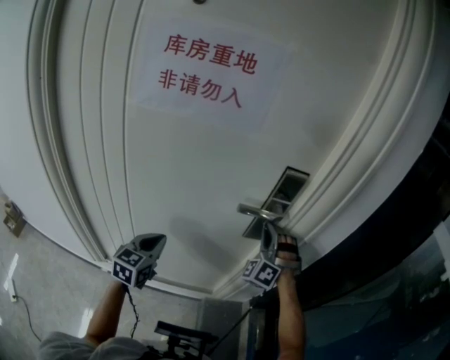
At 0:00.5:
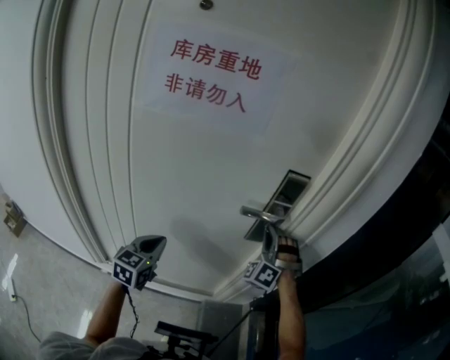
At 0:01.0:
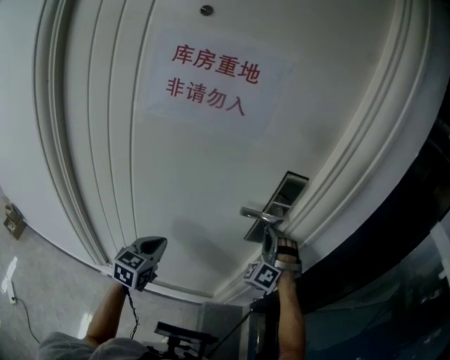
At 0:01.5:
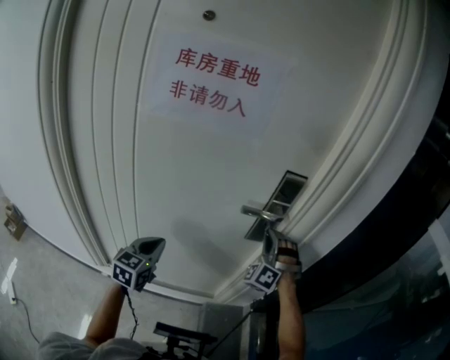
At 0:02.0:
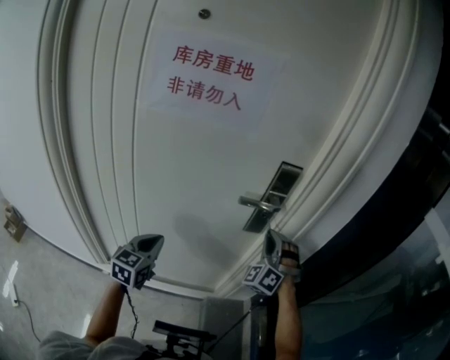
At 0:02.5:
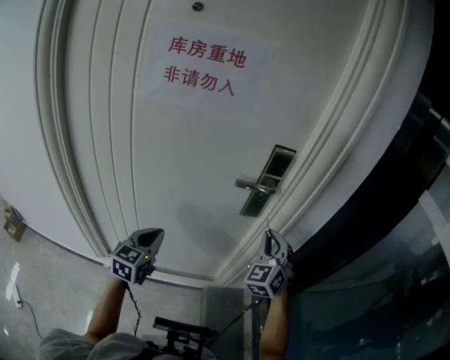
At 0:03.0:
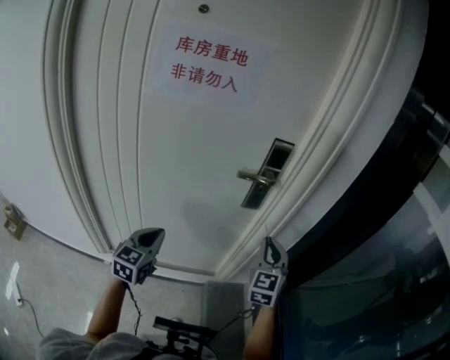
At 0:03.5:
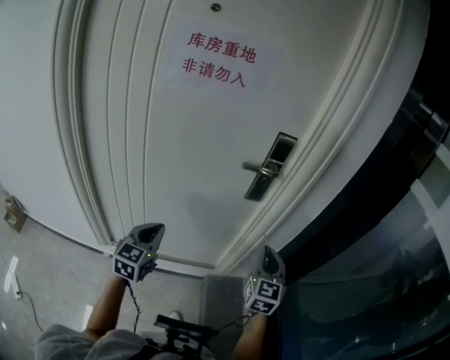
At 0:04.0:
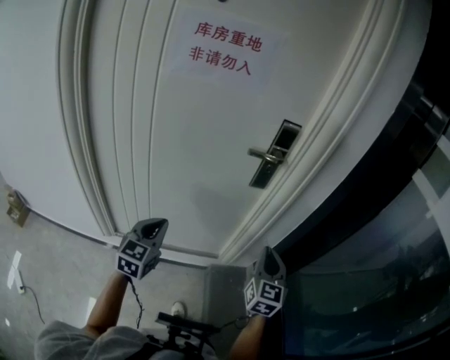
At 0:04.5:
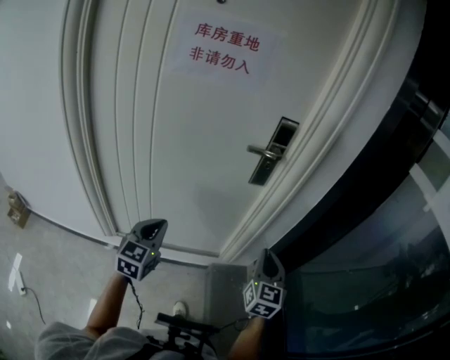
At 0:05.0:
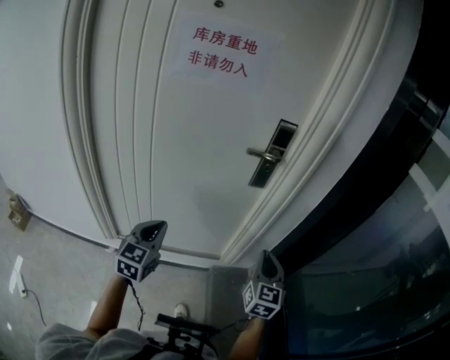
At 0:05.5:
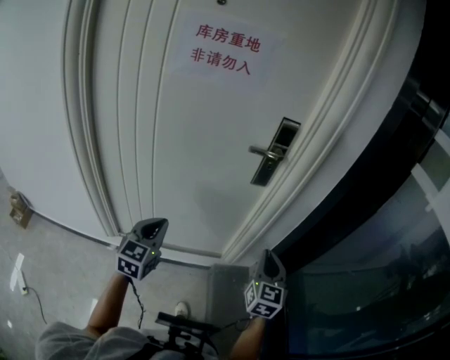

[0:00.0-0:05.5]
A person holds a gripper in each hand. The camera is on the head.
0:00.0 to 0:02.0: The right gripper travels backward by roughly 5 cm.
0:02.0 to 0:03.5: The right gripper is displaced backward by about 20 cm, and rotates around the line of its fingers by about 70 degrees, clockwise from behind; the left gripper moves backward, approximately 10 cm.
0:03.5 to 0:05.5: Both grippers move backward, roughly 5 cm.

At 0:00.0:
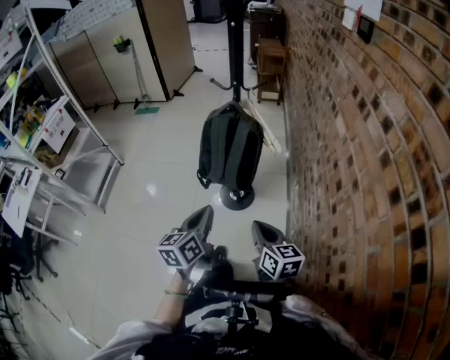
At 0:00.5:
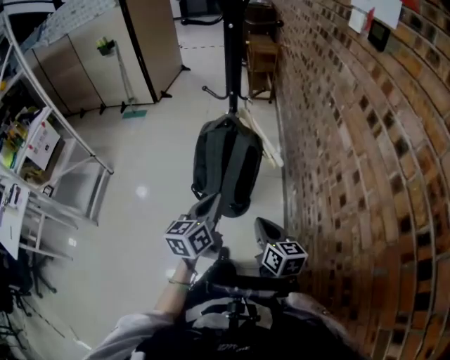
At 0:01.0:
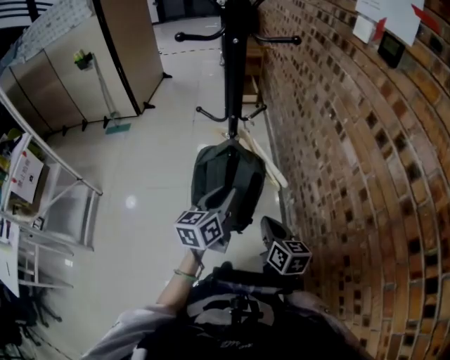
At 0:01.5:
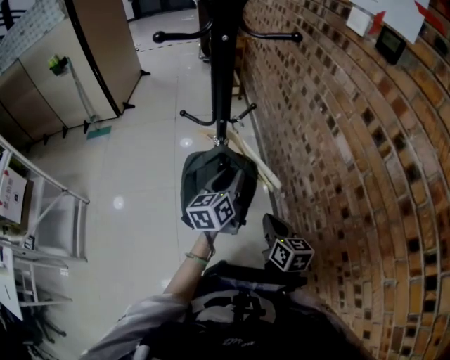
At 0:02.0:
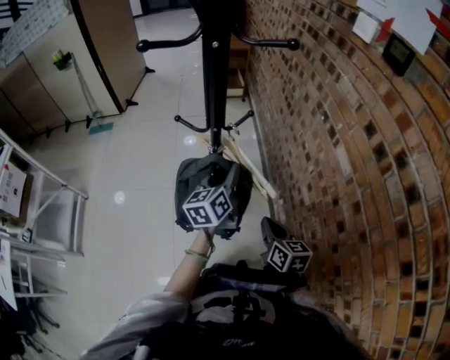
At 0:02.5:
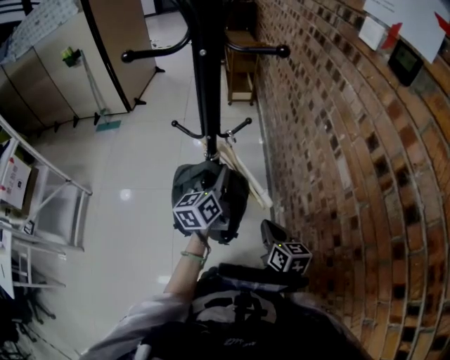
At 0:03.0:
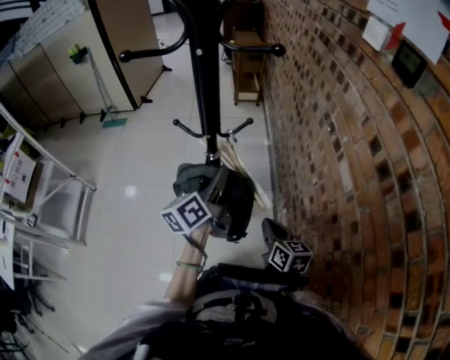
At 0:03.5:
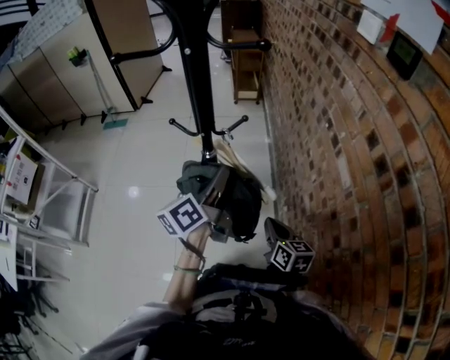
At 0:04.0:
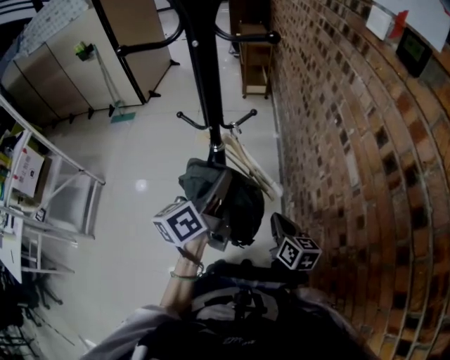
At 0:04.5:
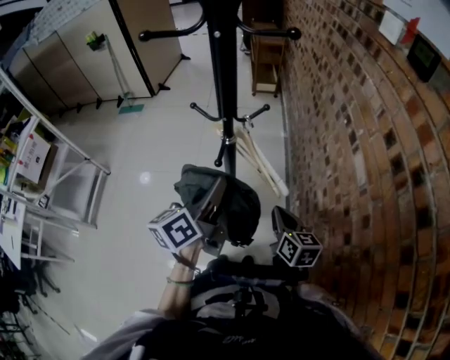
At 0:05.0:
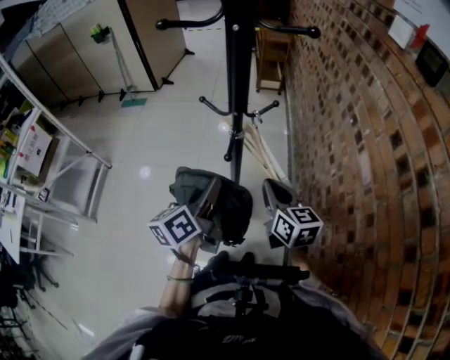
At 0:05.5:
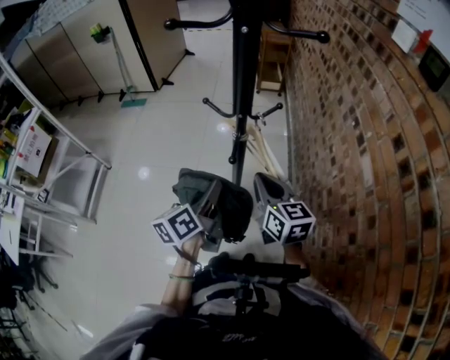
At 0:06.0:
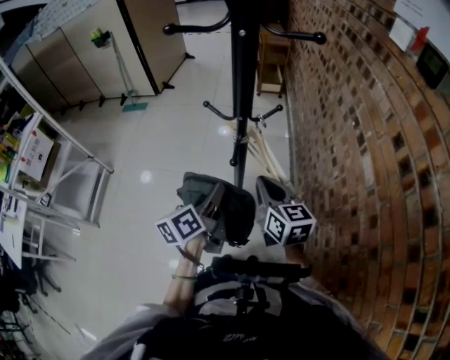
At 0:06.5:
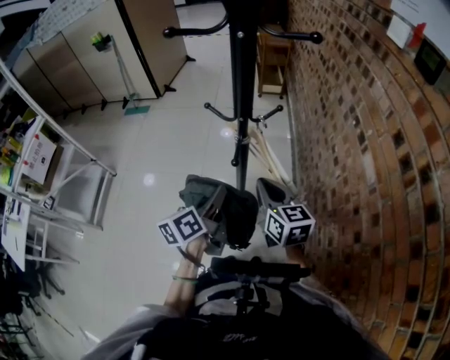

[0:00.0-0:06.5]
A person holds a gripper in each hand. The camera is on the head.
0:00.0 to 0:02.0: The right gripper heads forward, covering approximately 25 cm. The left gripper heads forward, covering some 40 cm, and opens its fingers.
0:02.0 to 0:04.5: The left gripper goes approximately 10 cm backward and upward, and closes up.
0:04.5 to 0:06.5: The left gripper shifts about 10 cm downward and to the left. The right gripper is displaced to the left, upward and forward by roughly 15 cm.

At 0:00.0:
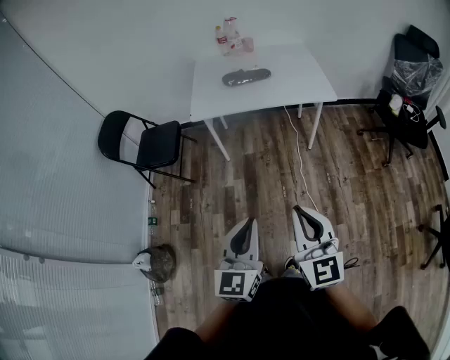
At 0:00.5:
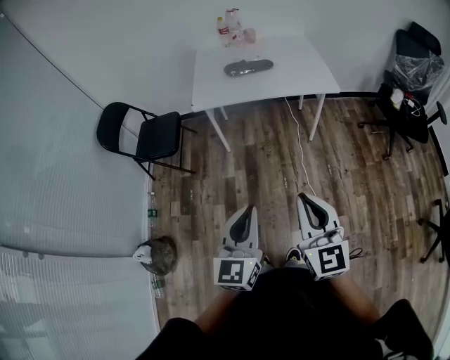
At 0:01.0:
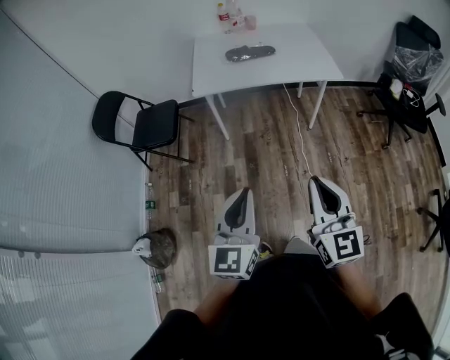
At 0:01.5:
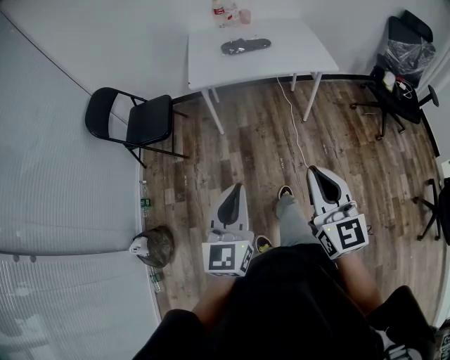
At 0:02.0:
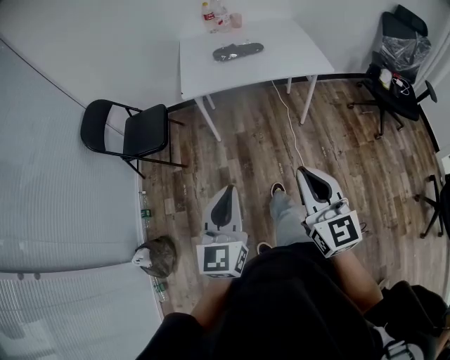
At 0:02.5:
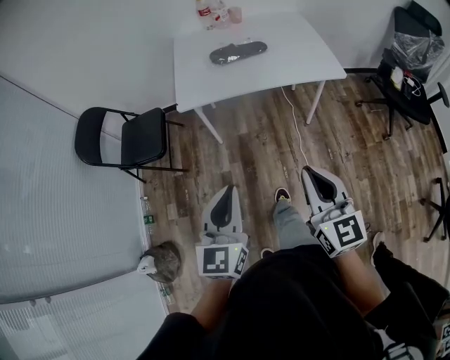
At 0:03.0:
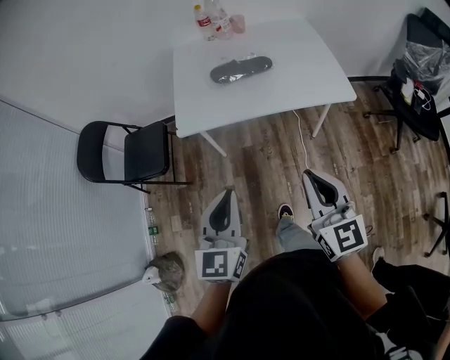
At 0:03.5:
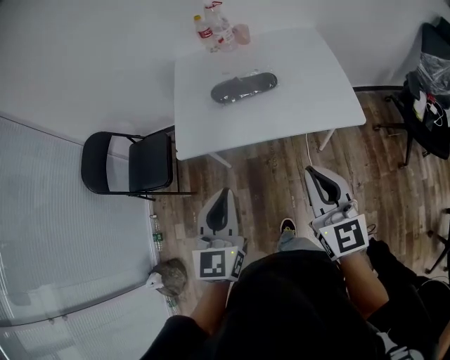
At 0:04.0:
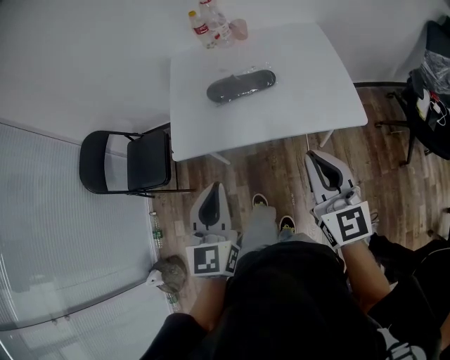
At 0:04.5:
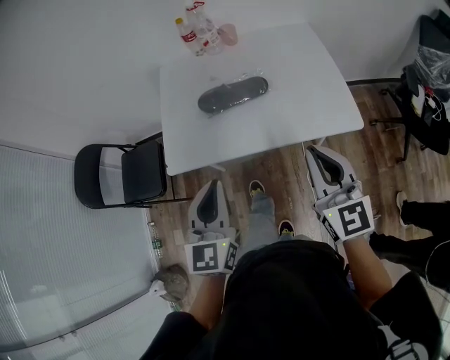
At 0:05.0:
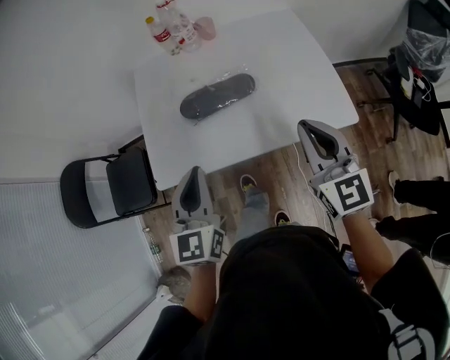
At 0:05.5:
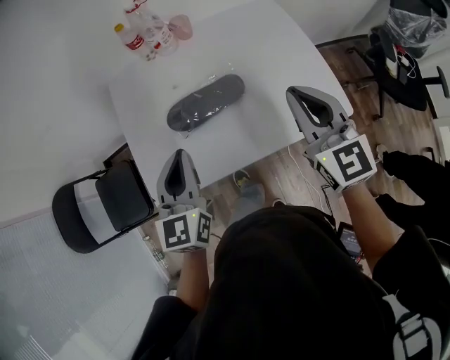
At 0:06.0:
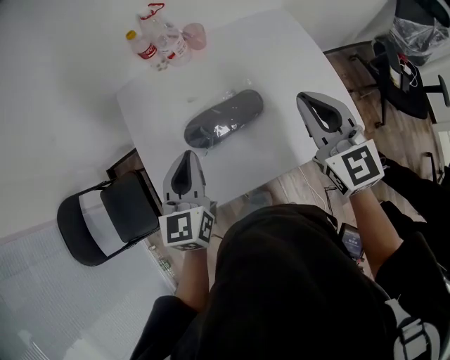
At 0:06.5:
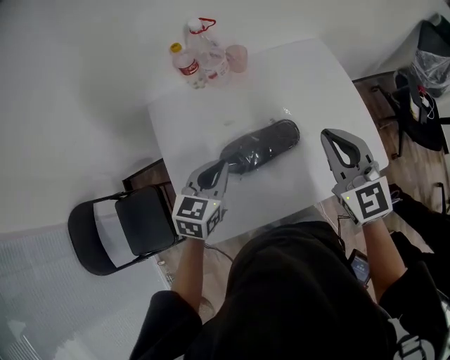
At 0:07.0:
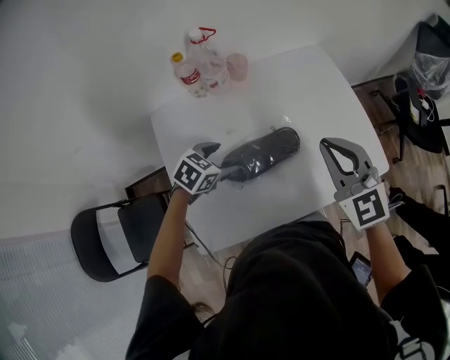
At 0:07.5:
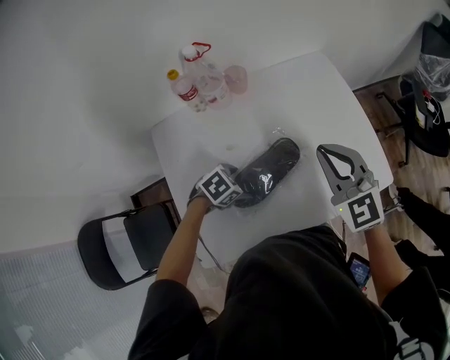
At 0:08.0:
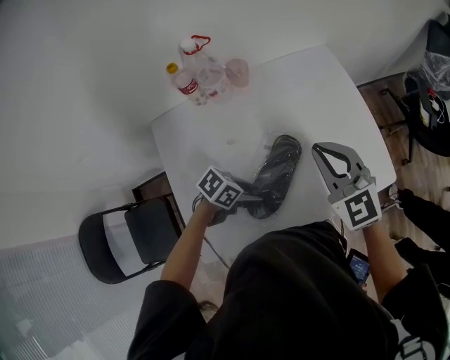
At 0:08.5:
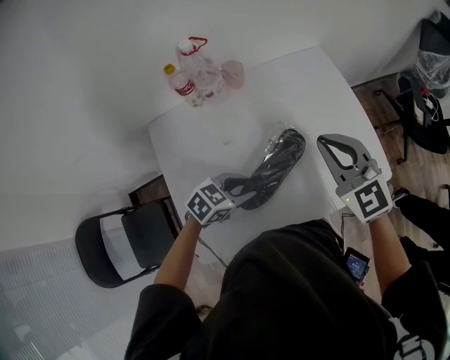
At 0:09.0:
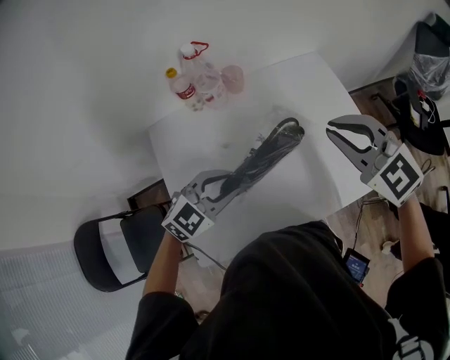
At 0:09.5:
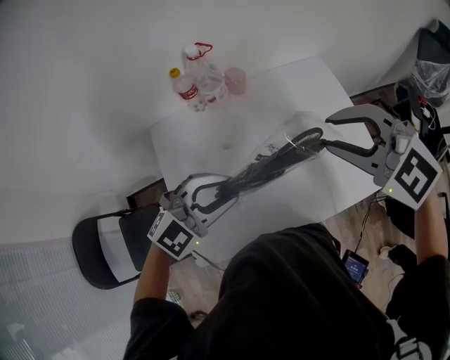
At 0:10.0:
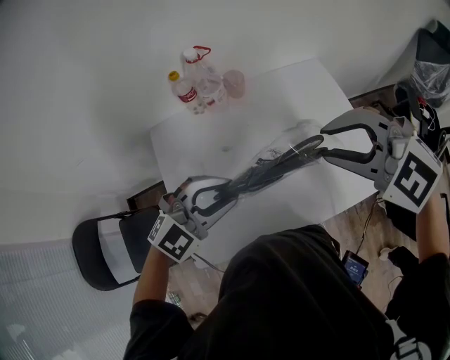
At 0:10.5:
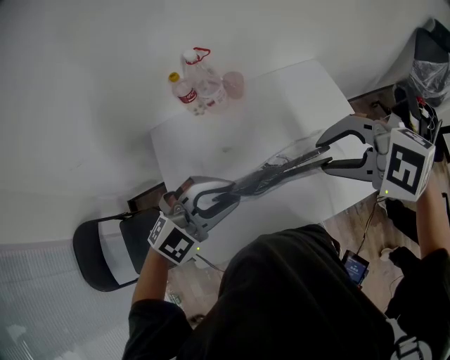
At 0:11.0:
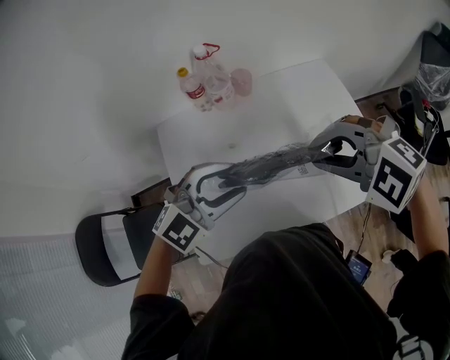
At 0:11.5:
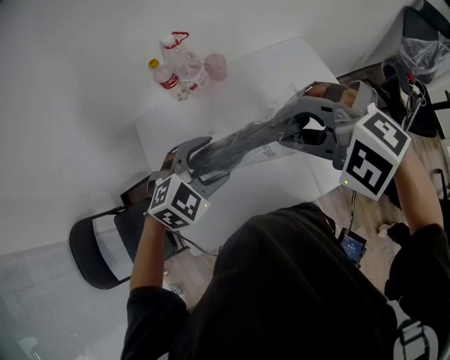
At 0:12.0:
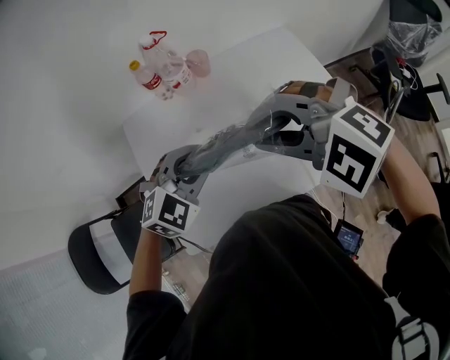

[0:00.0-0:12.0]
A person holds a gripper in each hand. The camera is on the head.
0:00.0 to 0:02.0: The right gripper is displaced to the left by approximately 5 cm. The left gripper heads to the left, covering approximately 10 cm.
0:02.0 to 0:04.0: The two grippers travel together, forward, roughly 40 cm.
0:04.0 to 0:06.0: The two grippers go roughly 30 cm forward.
0:06.0 to 0:08.0: The left gripper moves downward, about 20 cm, swivels some 80 degrees, and opens its fingers, while the right gripper shifts by roughly 10 cm.
0:08.0 to 0:10.0: The right gripper heads upward, covering approximately 10 cm, swivels roughly 40 degrees, and opens up. The left gripper goes roughly 20 cm upward, and twists about 60 degrees clockwise, seen from behind.
0:10.0 to 0:12.0: The left gripper shifts by approximately 5 cm, and opens and closes again; the right gripper changes place by roughly 10 cm.

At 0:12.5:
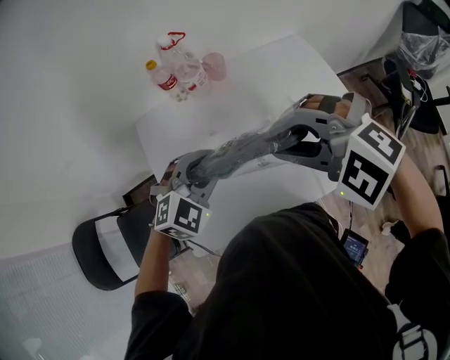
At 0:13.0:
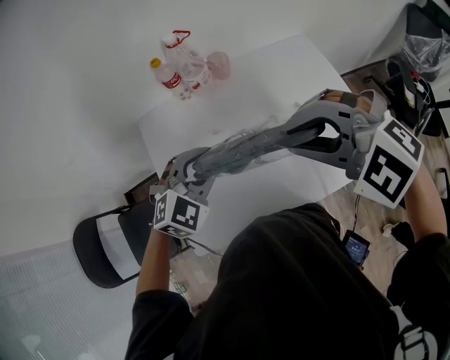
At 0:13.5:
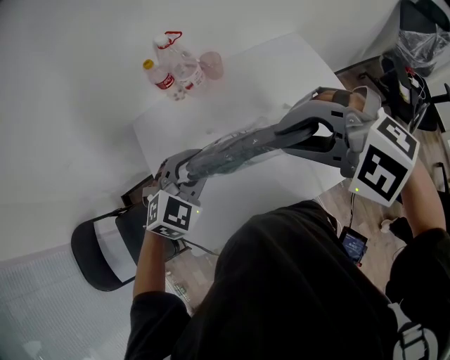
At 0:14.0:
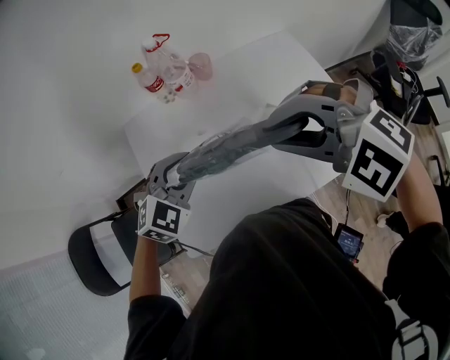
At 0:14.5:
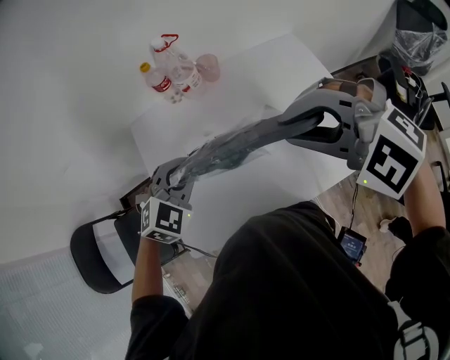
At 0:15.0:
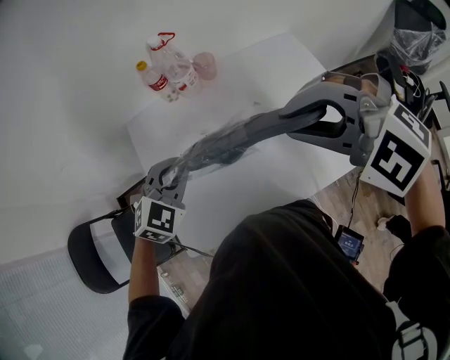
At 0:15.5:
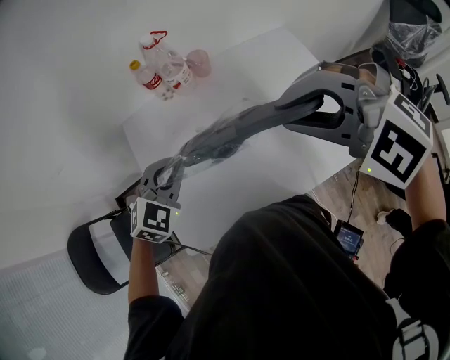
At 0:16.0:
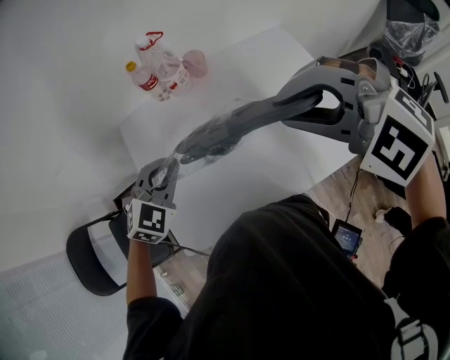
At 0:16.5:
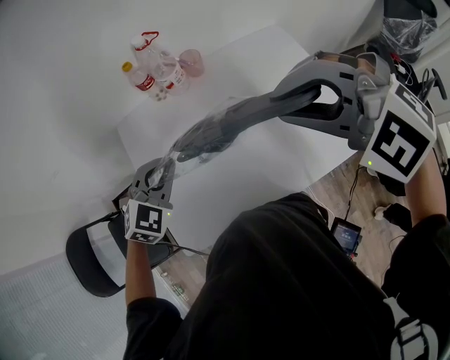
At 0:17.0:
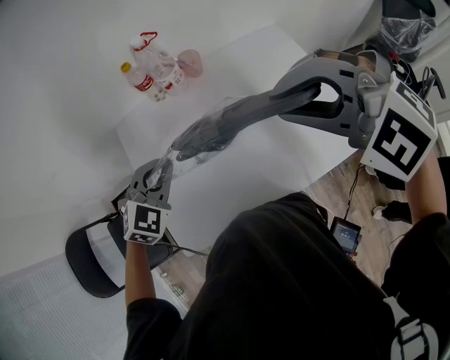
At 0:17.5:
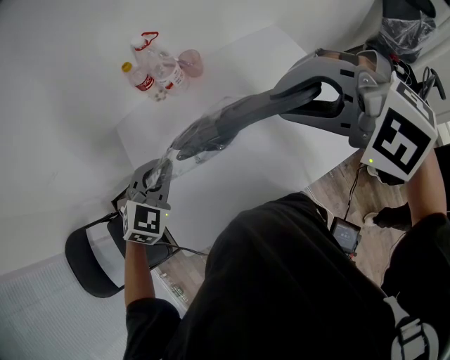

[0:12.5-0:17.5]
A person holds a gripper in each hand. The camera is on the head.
0:12.5 to 0:15.0: The right gripper ends up about 5 cm from where it was.
0:15.0 to 0:17.5: The grippers stay close to where they were, moving slightly.
